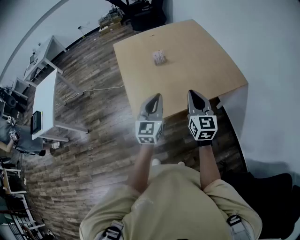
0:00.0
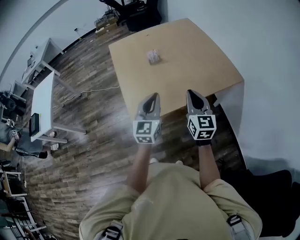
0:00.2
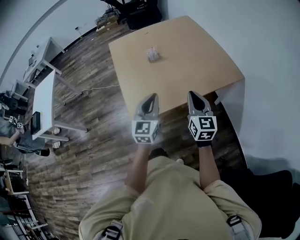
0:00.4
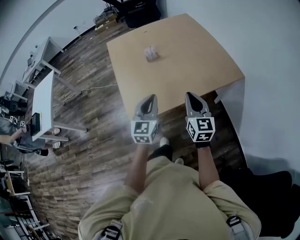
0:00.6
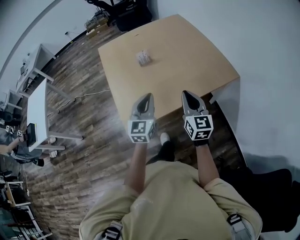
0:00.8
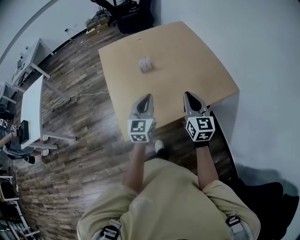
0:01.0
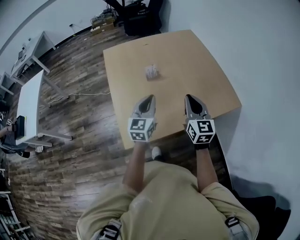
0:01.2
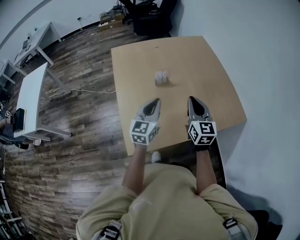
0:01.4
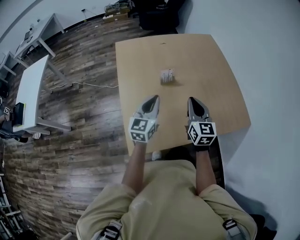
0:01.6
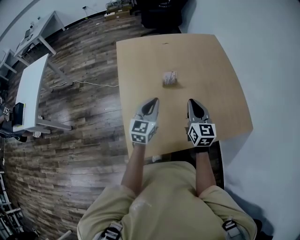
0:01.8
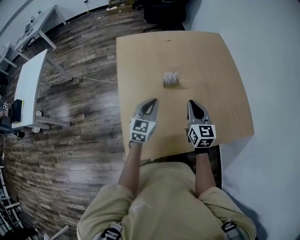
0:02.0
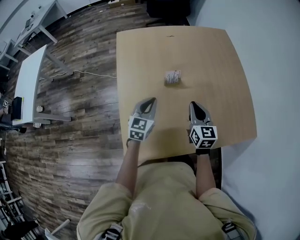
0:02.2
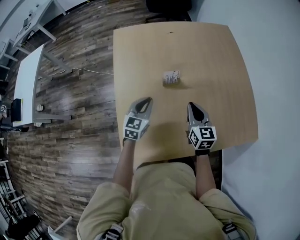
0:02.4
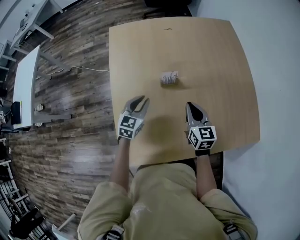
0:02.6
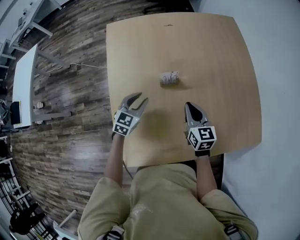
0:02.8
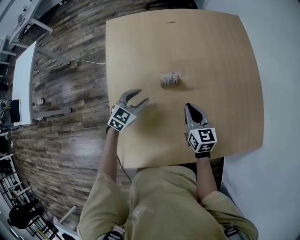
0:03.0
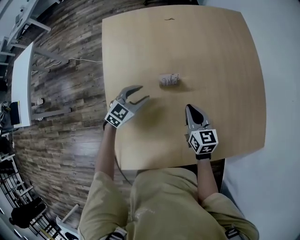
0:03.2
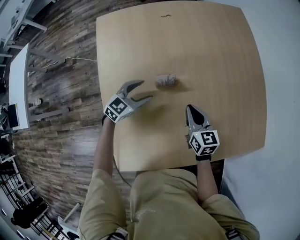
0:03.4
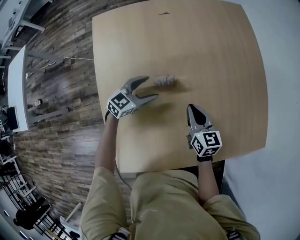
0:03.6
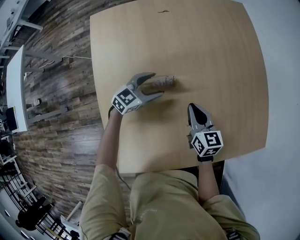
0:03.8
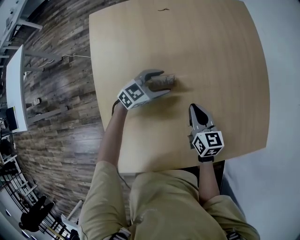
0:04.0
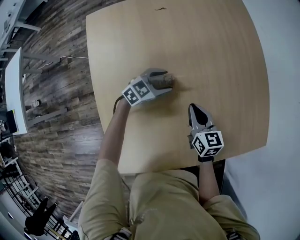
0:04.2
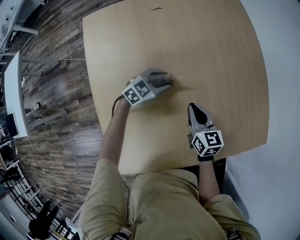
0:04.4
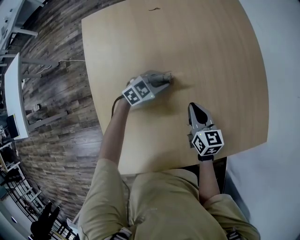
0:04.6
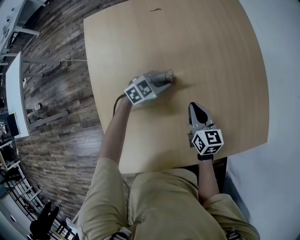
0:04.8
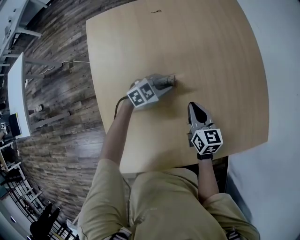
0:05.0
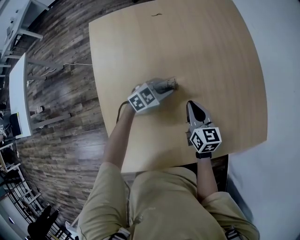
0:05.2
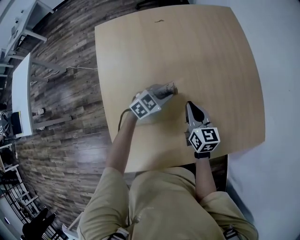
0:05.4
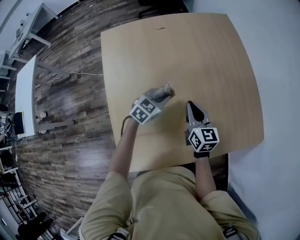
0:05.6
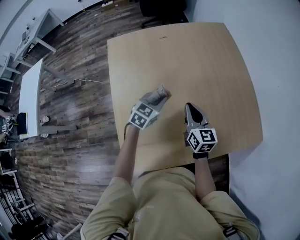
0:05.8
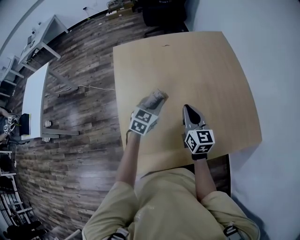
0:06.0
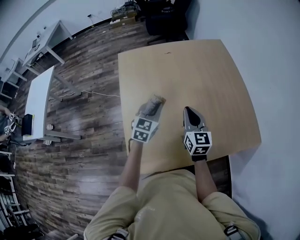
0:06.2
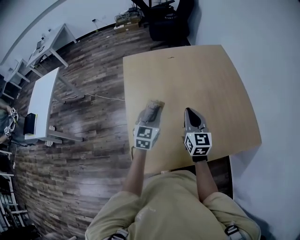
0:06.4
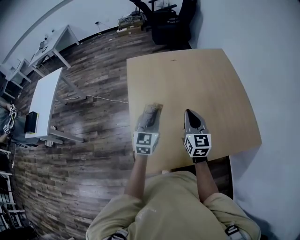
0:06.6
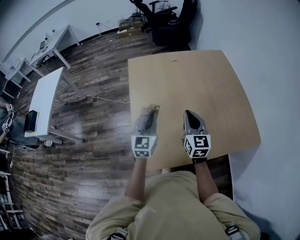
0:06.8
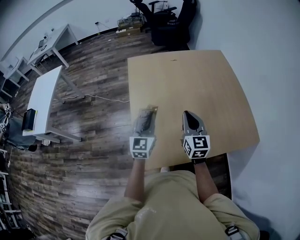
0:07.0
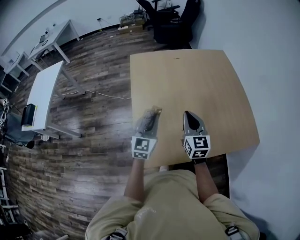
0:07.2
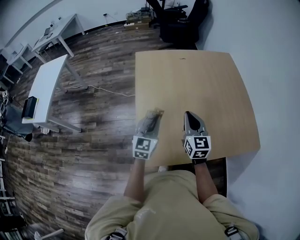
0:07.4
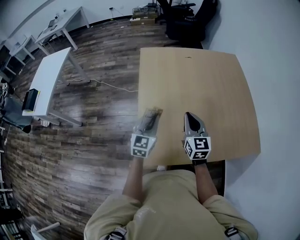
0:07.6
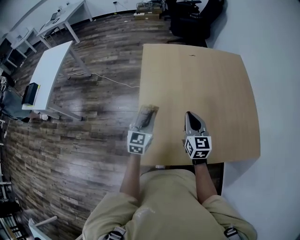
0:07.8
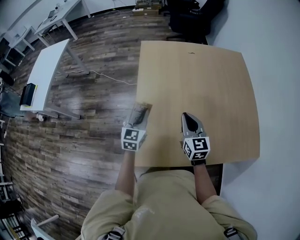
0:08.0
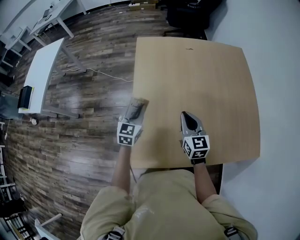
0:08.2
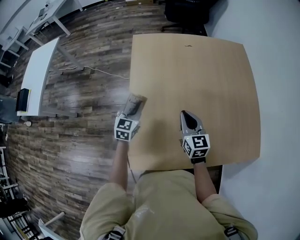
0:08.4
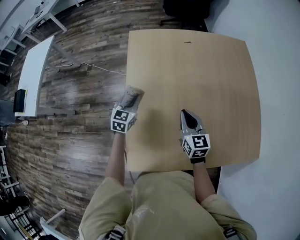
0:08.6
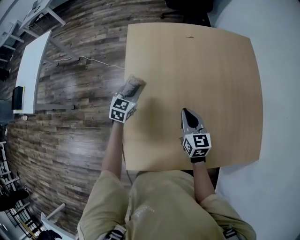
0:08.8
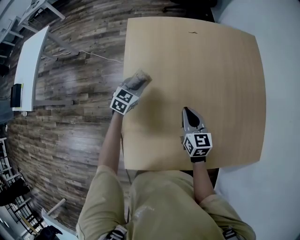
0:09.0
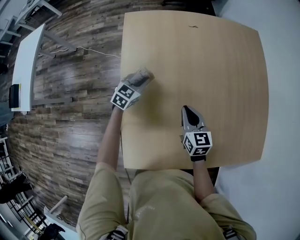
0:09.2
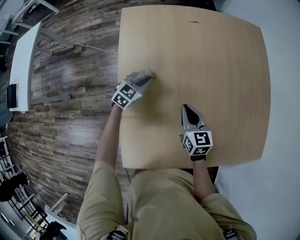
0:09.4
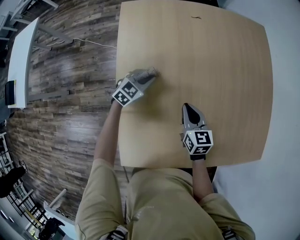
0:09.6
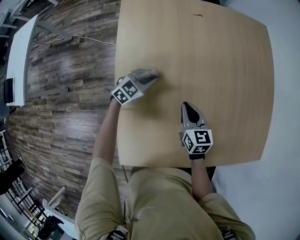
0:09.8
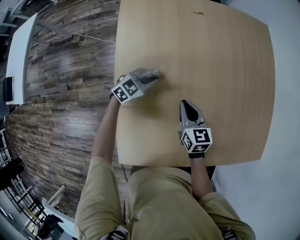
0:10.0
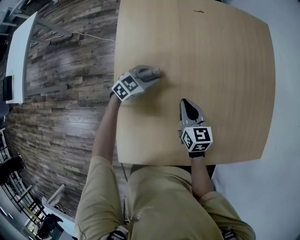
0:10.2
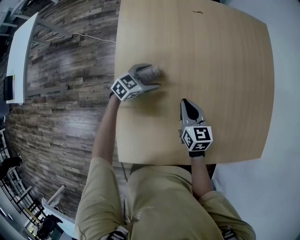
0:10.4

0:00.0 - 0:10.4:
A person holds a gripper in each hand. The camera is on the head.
0:00.0 - 0:01.4: Both grippers travel together forward, about 20 cm.
0:01.4 - 0:03.0: Both grippers travel together downward and forward, approximately 35 cm. The left gripper turns by approximately 30 degrees, and opens. The right gripper changes its angle by roughly 30 degrees.
0:03.0 - 0:04.4: The left gripper heads forward, to the right and downward, covering about 20 cm, and turns by approximately 30 degrees. Meanwhile the right gripper goes about 5 cm downward.
0:04.4 - 0:06.0: The two grippers go some 25 cm upward and backward. The left gripper rotates some 30 degrees.
0:06.0 - 0:07.4: The grippers both shift backward, to the left and upward by roughly 20 cm. The left gripper changes its angle by about 30 degrees.
0:07.4 - 0:09.0: Both grippers travel together forward and downward, roughly 30 cm. The left gripper swivels approximately 30 degrees, while the right gripper rotates about 20 degrees.
0:09.0 - 0:10.4: The left gripper travels downward and to the right by approximately 10 cm, swivels about 20 degrees, and opens, while the right gripper heads downward, covering roughly 10 cm.

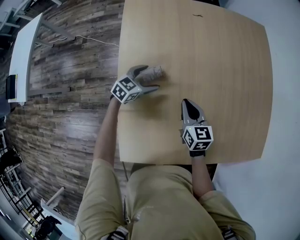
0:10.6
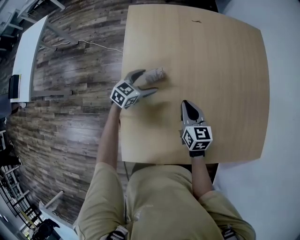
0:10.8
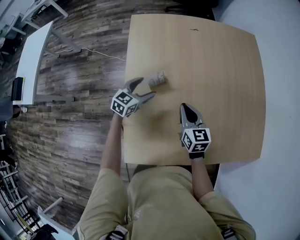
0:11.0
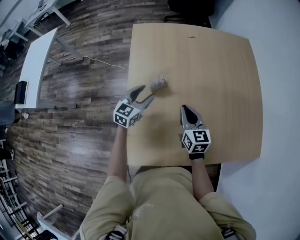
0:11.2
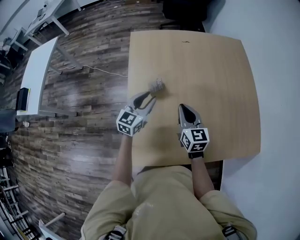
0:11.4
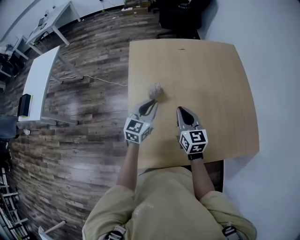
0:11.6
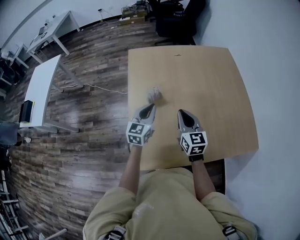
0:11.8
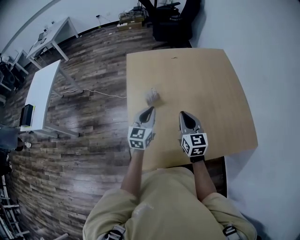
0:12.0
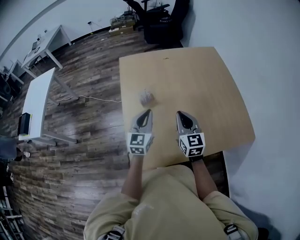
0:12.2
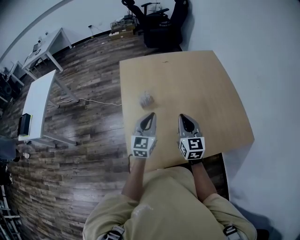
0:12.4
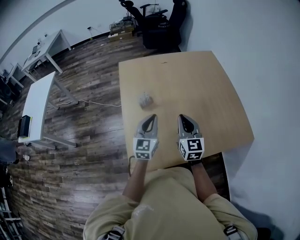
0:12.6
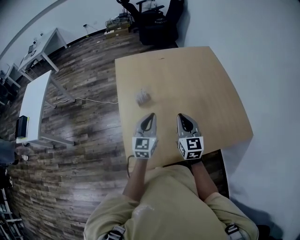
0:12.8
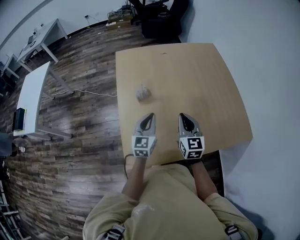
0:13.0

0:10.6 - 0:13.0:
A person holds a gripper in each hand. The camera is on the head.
0:10.6 - 0:11.8: Both grippers travel together upward and backward, about 25 cm. The right gripper changes its angle by roughly 20 degrees, while the left gripper changes its angle by some 40 degrees, and closes.
0:11.8 - 0:13.0: The left gripper heads backward and to the right, covering approximately 10 cm; the right gripper shifts about 10 cm to the right and backward.

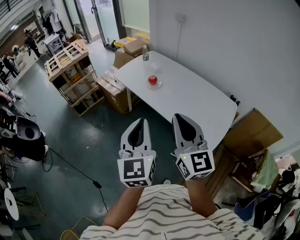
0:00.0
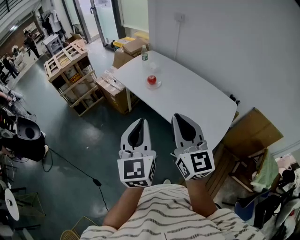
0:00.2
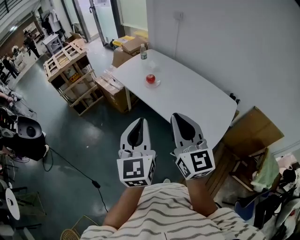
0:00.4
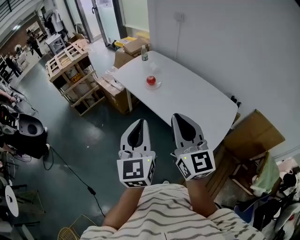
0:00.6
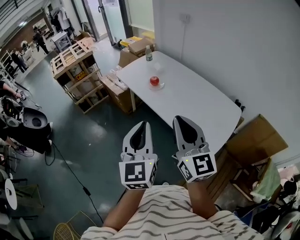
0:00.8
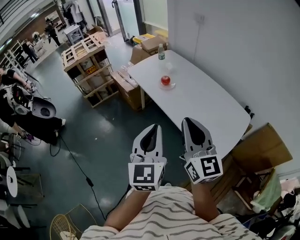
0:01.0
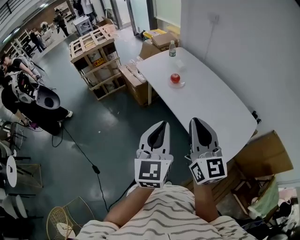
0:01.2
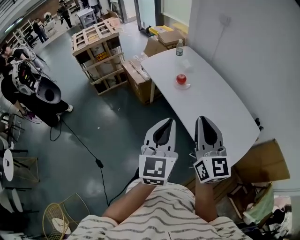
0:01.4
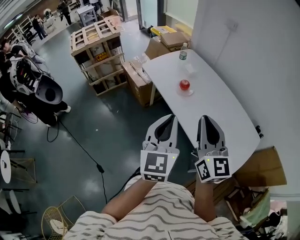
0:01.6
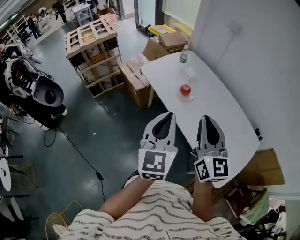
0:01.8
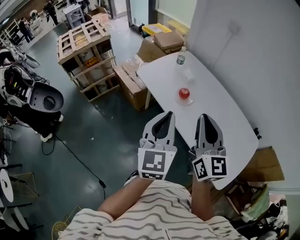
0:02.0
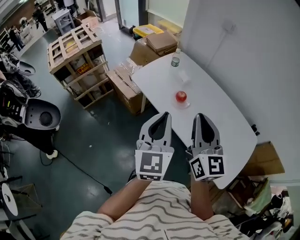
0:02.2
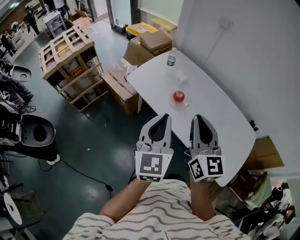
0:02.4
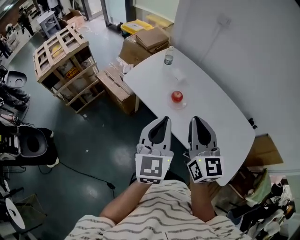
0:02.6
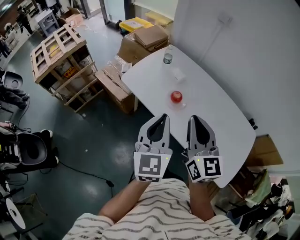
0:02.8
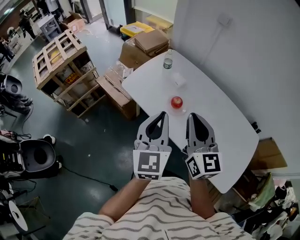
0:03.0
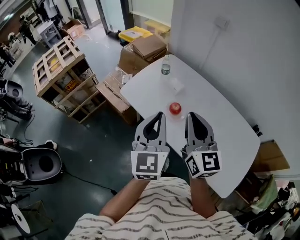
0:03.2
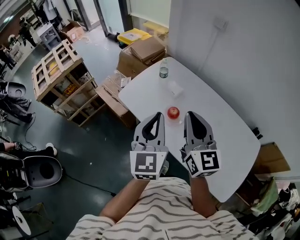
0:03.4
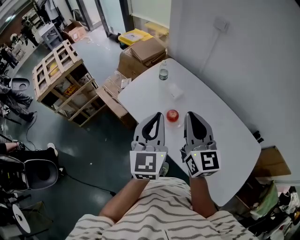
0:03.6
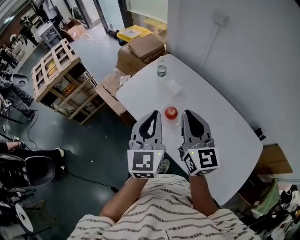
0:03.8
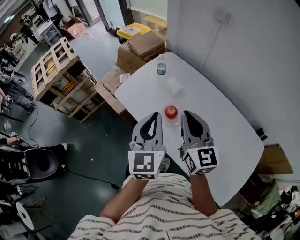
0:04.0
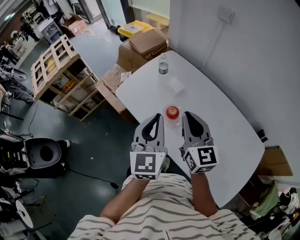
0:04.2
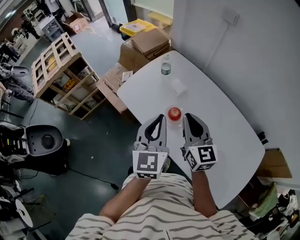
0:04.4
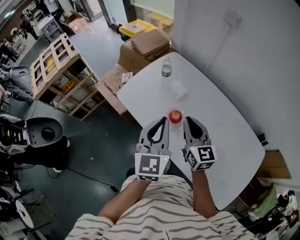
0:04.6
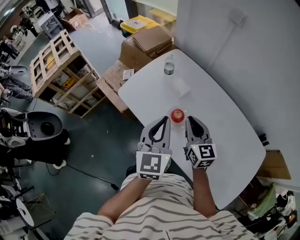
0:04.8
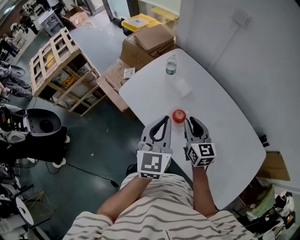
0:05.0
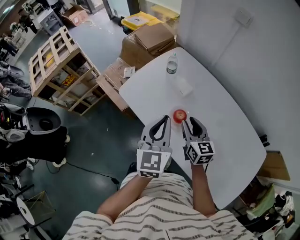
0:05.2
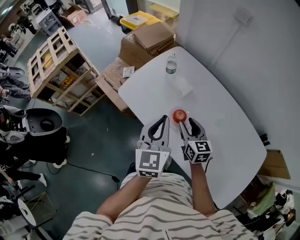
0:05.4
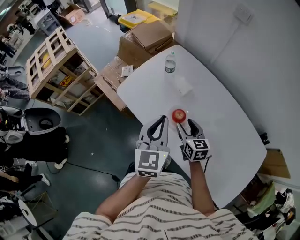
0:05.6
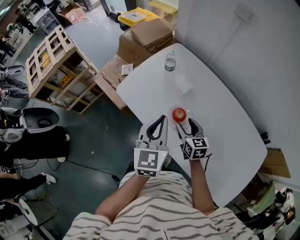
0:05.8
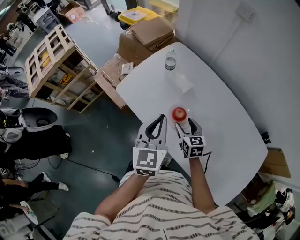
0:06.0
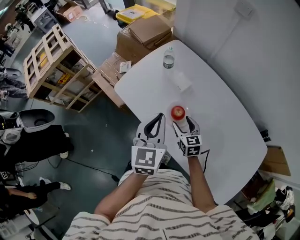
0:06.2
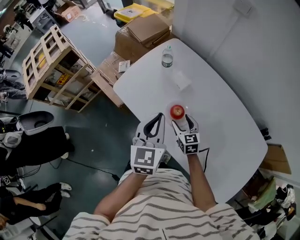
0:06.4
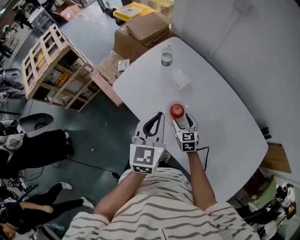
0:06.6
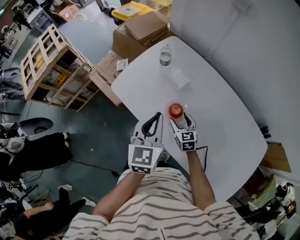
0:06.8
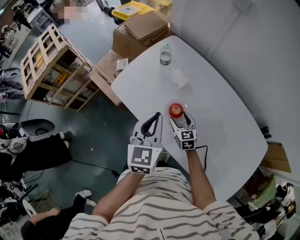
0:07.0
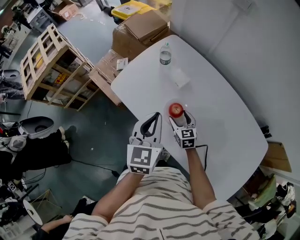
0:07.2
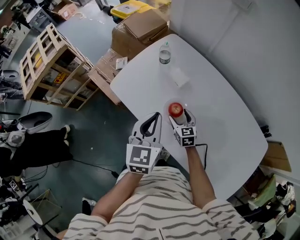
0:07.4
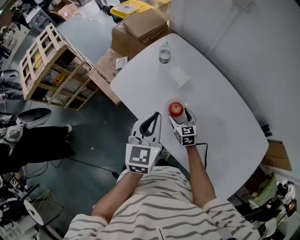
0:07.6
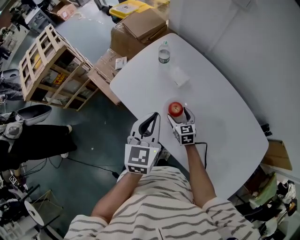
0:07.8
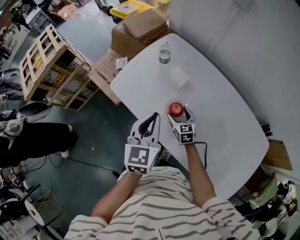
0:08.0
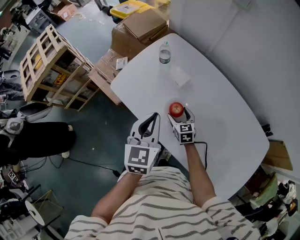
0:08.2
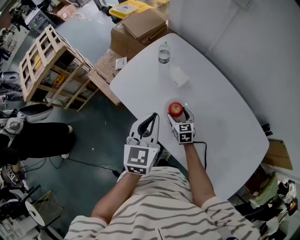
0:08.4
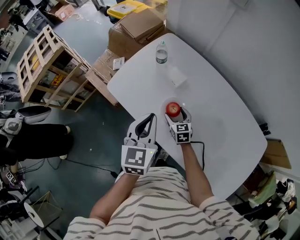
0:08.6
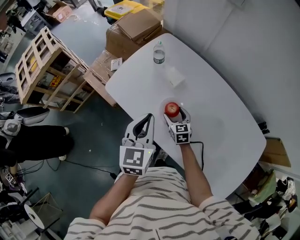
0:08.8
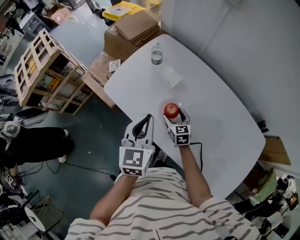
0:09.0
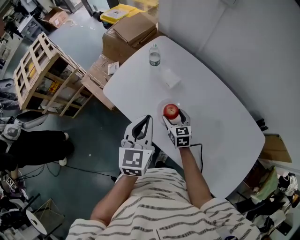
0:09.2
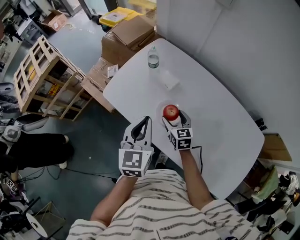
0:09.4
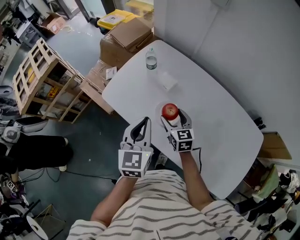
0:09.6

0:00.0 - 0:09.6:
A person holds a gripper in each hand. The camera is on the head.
0:00.0 - 0:01.6: The grippers both shift forward by some 15 cm.
0:01.6 - 0:03.2: Both grippers move forward, approximately 30 cm.
0:03.2 - 0:04.8: The left gripper goes about 15 cm forward and downward; the right gripper heads downward and forward, covering about 20 cm.
0:04.8 - 0:06.4: The left gripper shifts some 5 cm downward, while the right gripper is displaced downward by roughly 20 cm, and opens up.
0:06.4 - 0:08.0: The right gripper shifts by about 5 cm.
0:08.0 - 0:09.6: The right gripper moves upward, roughly 10 cm.

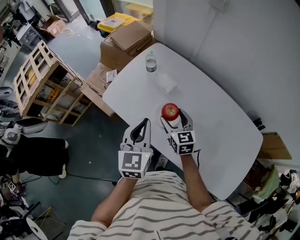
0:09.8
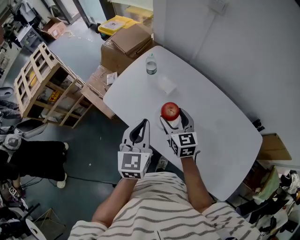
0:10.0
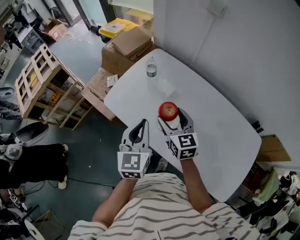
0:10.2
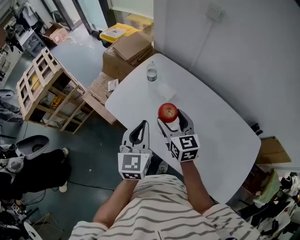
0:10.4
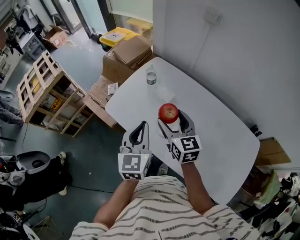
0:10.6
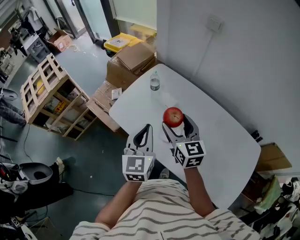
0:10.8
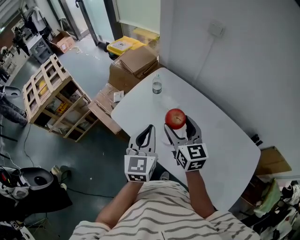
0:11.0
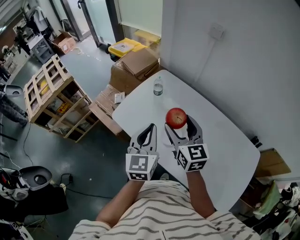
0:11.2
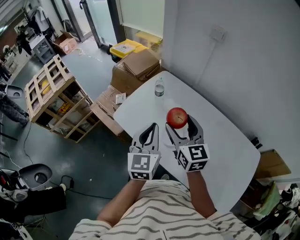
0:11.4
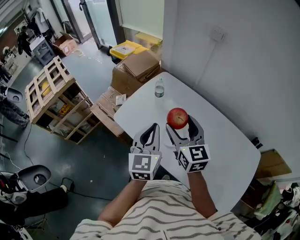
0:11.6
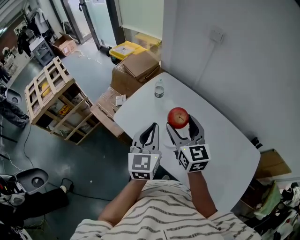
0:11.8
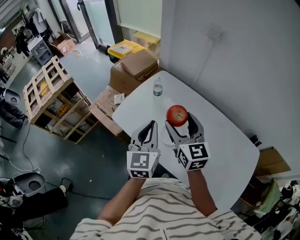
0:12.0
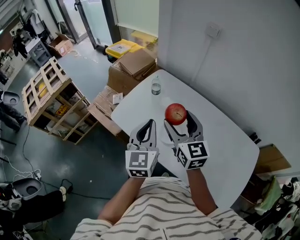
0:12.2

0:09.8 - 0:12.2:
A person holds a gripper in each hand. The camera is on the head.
0:09.8 - 0:11.0: The left gripper shifts roughly 5 cm upward, while the right gripper is displaced upward by about 15 cm.
0:11.0 - 0:12.2: There are only small adjustments of the grippers.
